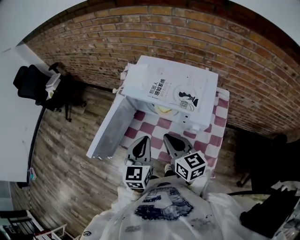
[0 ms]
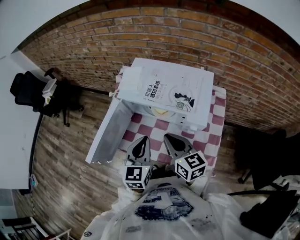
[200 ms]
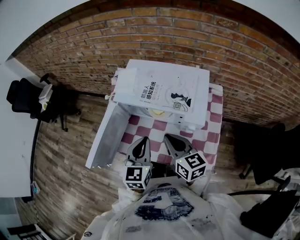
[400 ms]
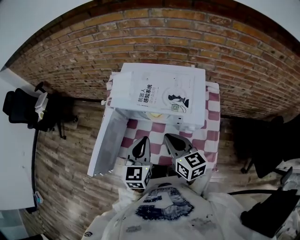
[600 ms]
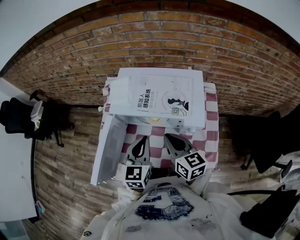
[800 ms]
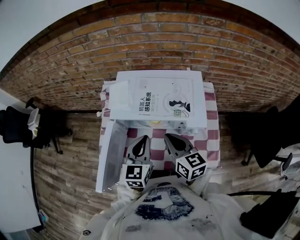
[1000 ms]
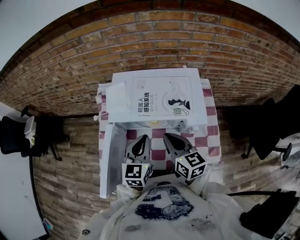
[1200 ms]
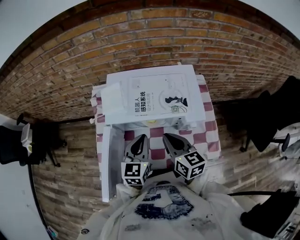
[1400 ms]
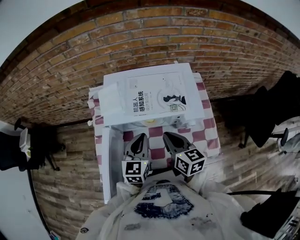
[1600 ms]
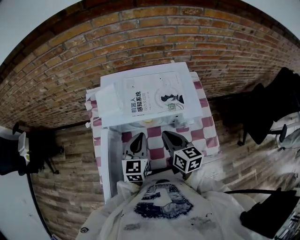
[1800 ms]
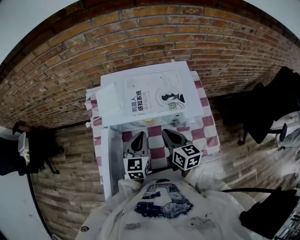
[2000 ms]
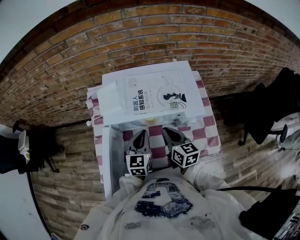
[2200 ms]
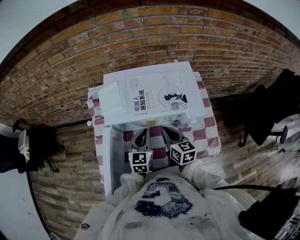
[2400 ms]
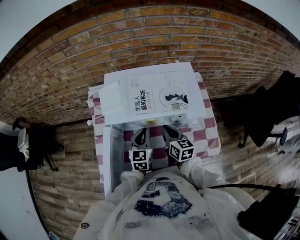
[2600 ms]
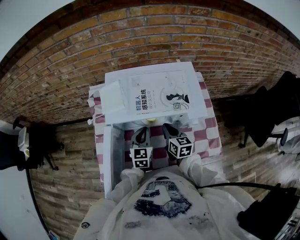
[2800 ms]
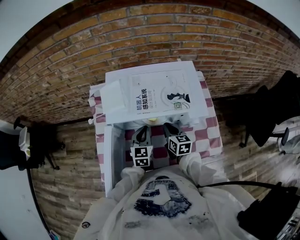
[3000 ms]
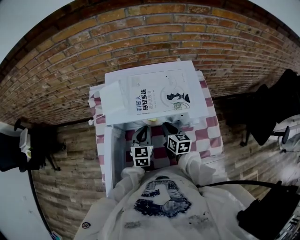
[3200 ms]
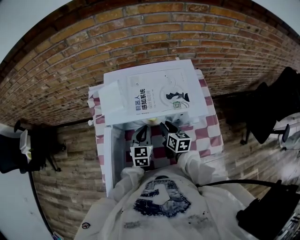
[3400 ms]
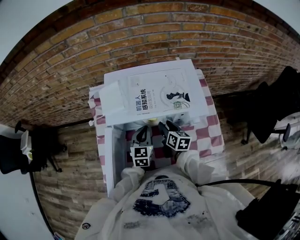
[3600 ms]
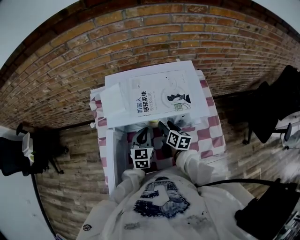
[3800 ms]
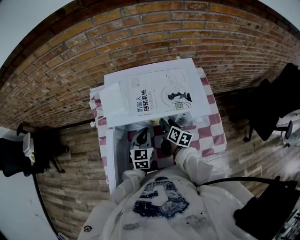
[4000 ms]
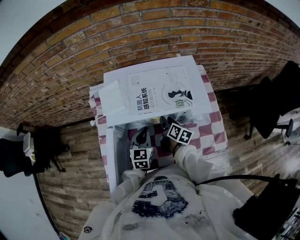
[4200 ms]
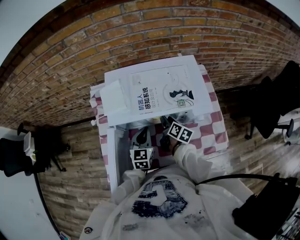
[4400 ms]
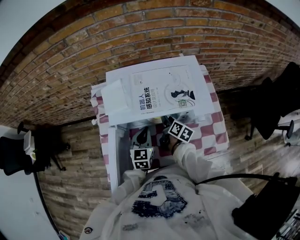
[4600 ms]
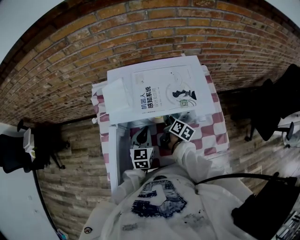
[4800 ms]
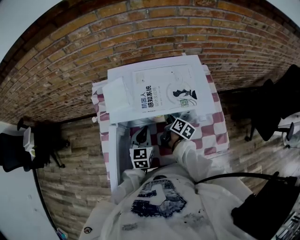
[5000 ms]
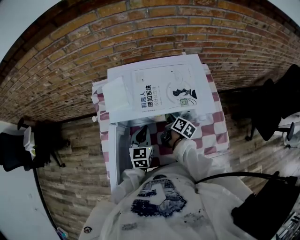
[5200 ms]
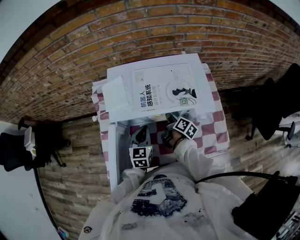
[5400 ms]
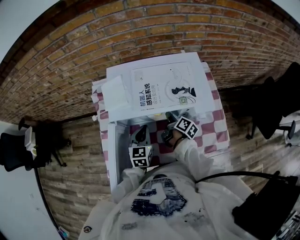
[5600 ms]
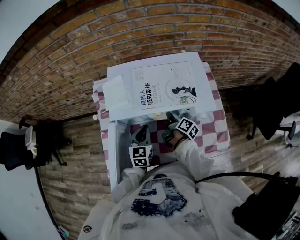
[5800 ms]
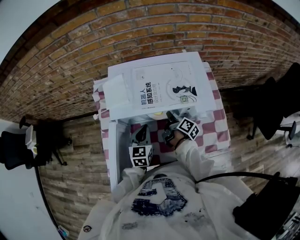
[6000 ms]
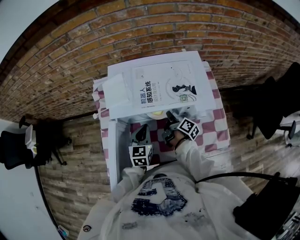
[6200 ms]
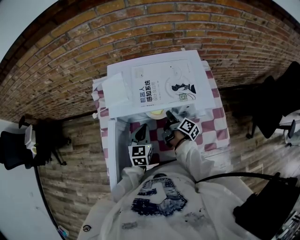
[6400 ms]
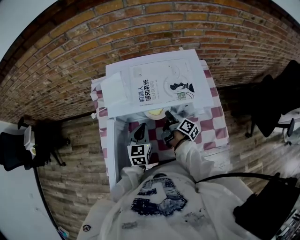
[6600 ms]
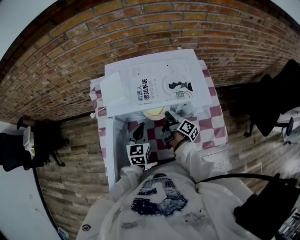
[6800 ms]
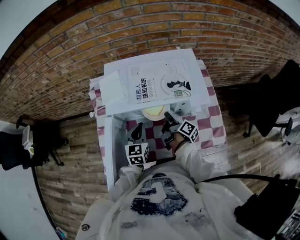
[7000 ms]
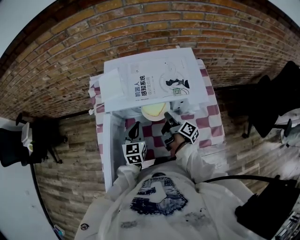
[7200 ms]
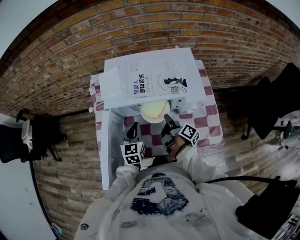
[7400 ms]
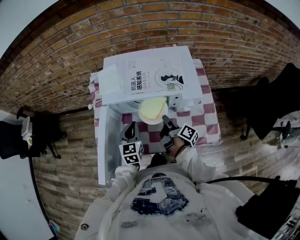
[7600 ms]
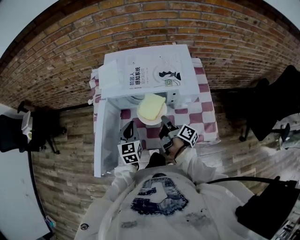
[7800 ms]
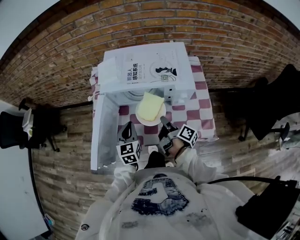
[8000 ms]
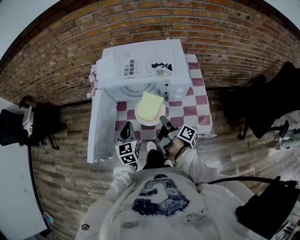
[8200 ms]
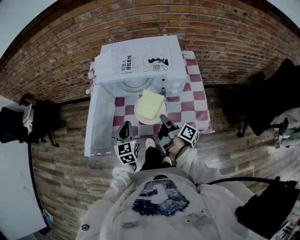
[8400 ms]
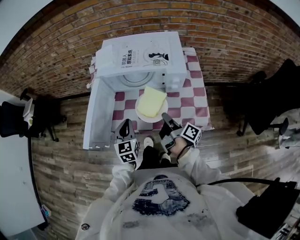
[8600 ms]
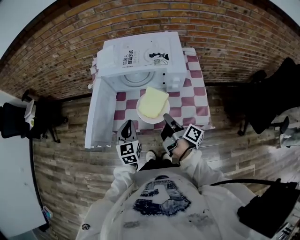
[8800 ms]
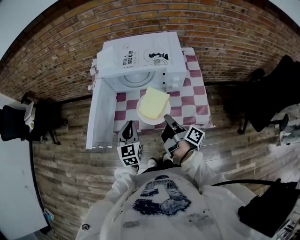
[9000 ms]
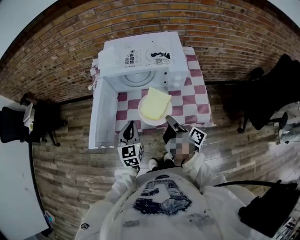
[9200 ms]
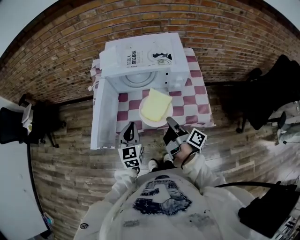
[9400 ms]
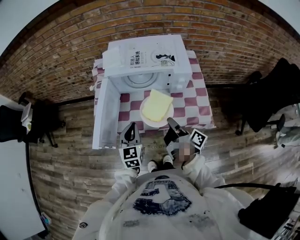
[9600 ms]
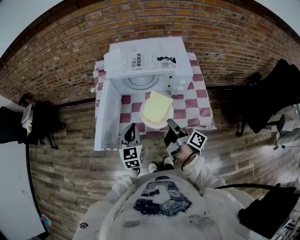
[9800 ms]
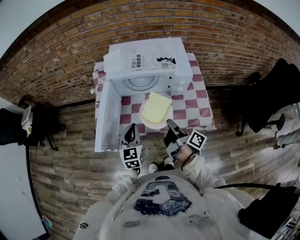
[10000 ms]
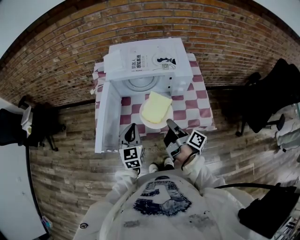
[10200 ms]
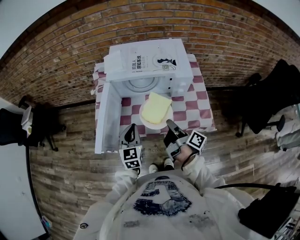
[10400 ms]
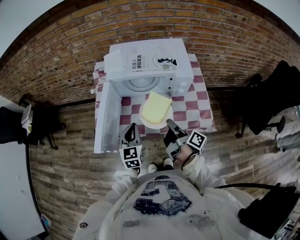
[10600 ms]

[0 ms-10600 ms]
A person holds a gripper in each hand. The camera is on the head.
0 ms to 1600 ms: The right gripper shifts by roughly 10 cm, and swivels about 30 degrees; the left gripper ends up roughly 10 cm from where it was, and changes its angle by some 30 degrees.
1600 ms to 3000 ms: The left gripper is displaced downward by roughly 10 cm, while the right gripper travels downward and forward by roughly 15 cm.
3000 ms to 4600 ms: The right gripper changes place by approximately 5 cm, changes its angle by some 40 degrees, and opens.
4600 ms to 6000 ms: The right gripper rotates approximately 20 degrees, and closes its fingers.
6000 ms to 7600 ms: The left gripper goes about 5 cm backward, while the right gripper is displaced backward and upward by some 10 cm.
7600 ms to 9000 ms: The left gripper travels backward by about 15 cm, while the right gripper travels backward and upward by about 20 cm.
9000 ms to 10600 ms: There are only small adjustments of the grippers.

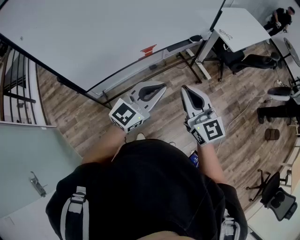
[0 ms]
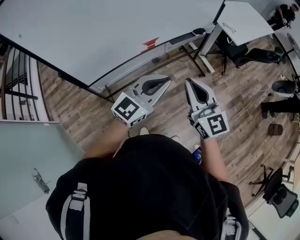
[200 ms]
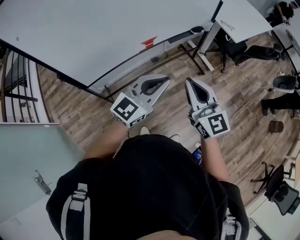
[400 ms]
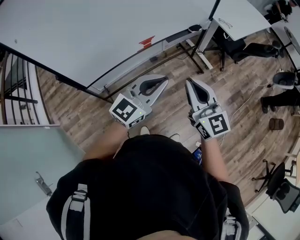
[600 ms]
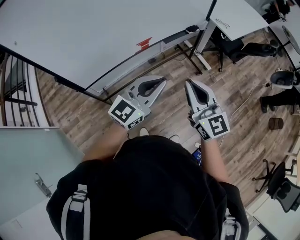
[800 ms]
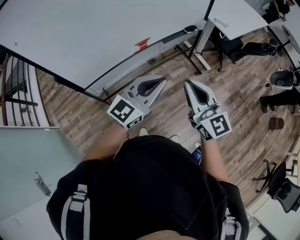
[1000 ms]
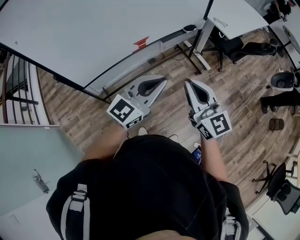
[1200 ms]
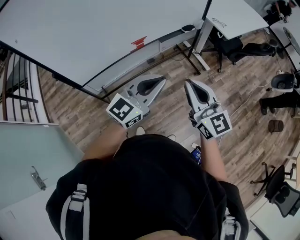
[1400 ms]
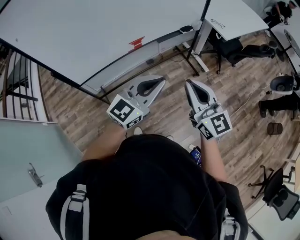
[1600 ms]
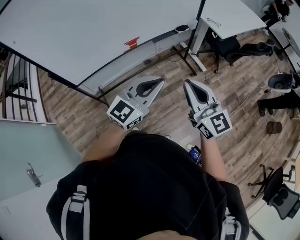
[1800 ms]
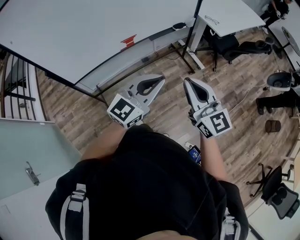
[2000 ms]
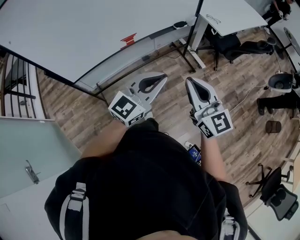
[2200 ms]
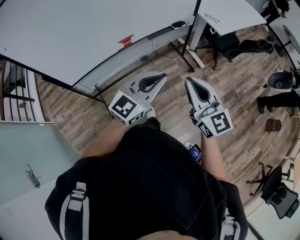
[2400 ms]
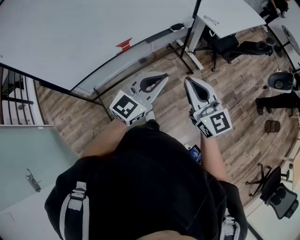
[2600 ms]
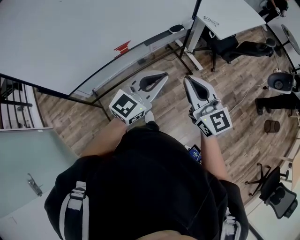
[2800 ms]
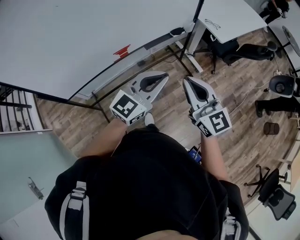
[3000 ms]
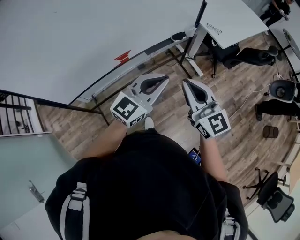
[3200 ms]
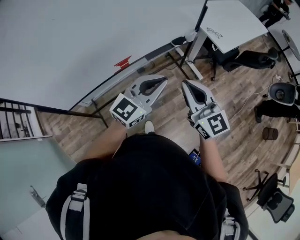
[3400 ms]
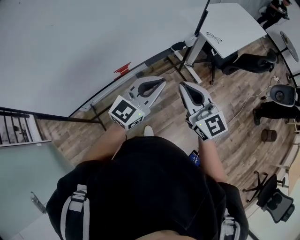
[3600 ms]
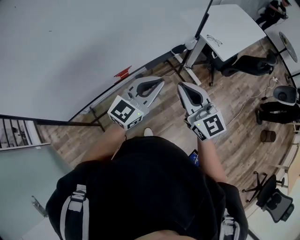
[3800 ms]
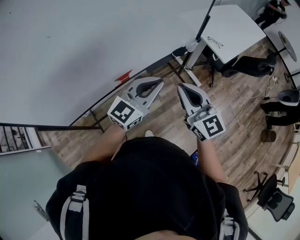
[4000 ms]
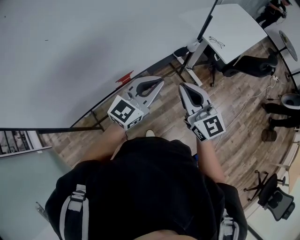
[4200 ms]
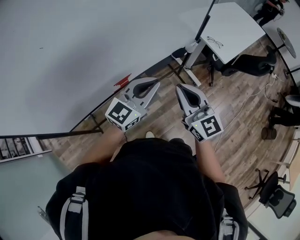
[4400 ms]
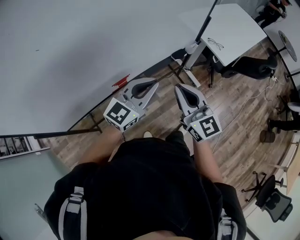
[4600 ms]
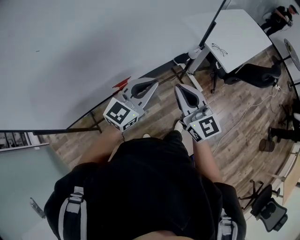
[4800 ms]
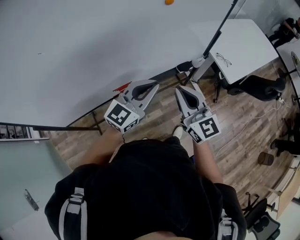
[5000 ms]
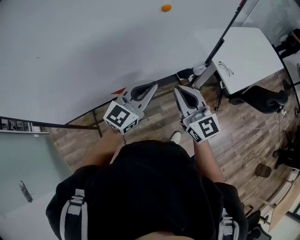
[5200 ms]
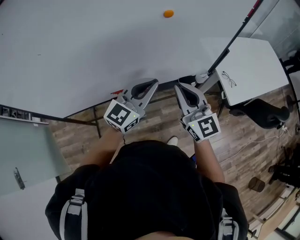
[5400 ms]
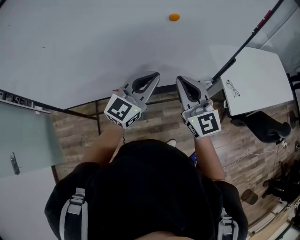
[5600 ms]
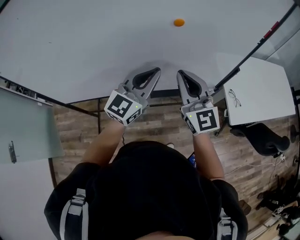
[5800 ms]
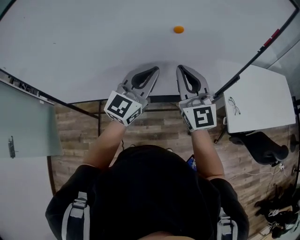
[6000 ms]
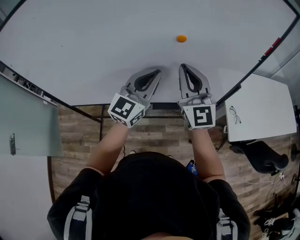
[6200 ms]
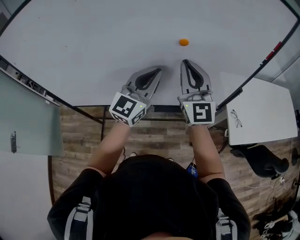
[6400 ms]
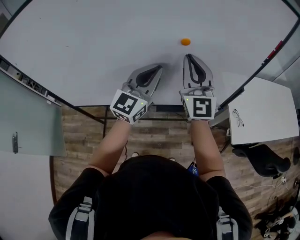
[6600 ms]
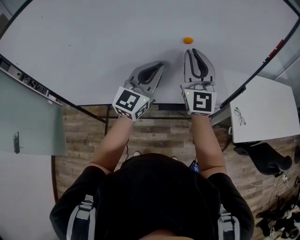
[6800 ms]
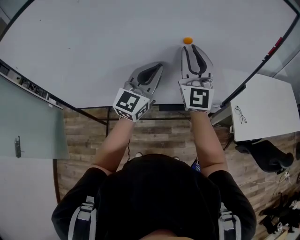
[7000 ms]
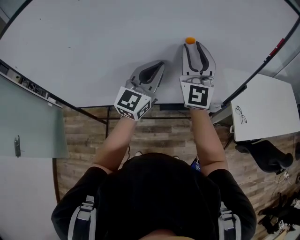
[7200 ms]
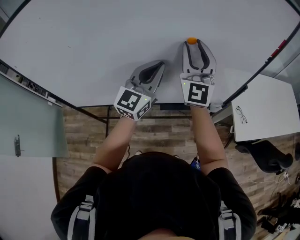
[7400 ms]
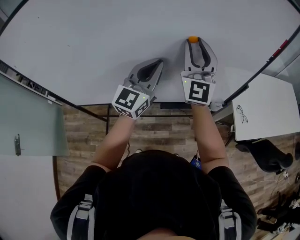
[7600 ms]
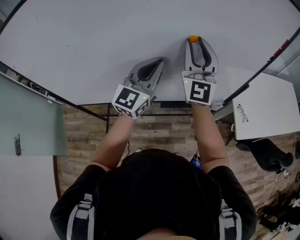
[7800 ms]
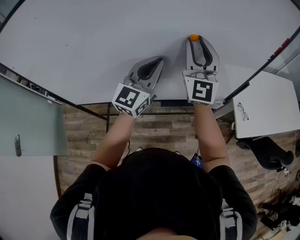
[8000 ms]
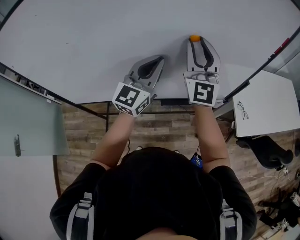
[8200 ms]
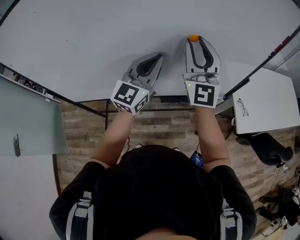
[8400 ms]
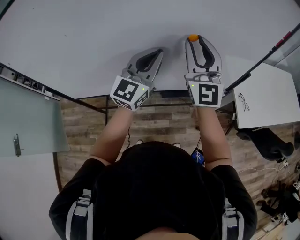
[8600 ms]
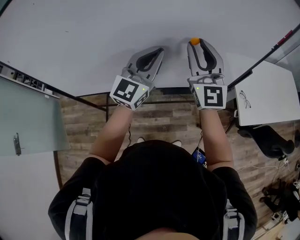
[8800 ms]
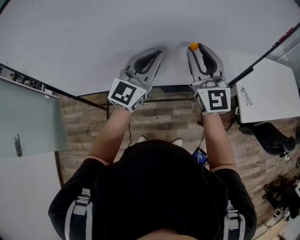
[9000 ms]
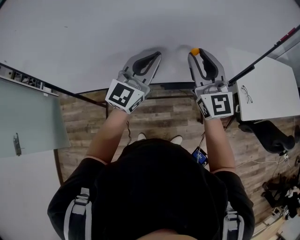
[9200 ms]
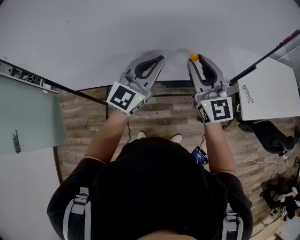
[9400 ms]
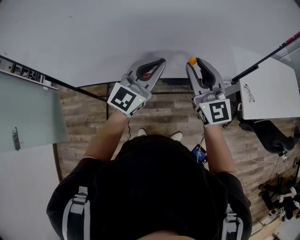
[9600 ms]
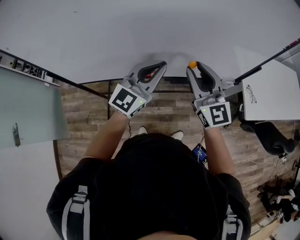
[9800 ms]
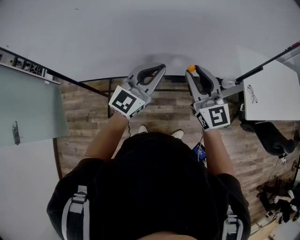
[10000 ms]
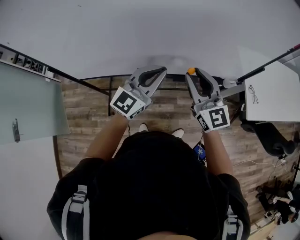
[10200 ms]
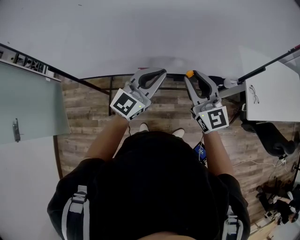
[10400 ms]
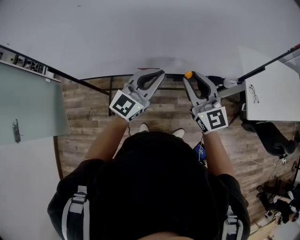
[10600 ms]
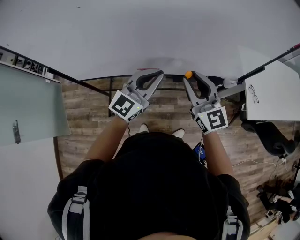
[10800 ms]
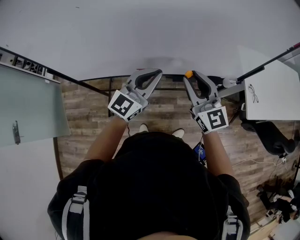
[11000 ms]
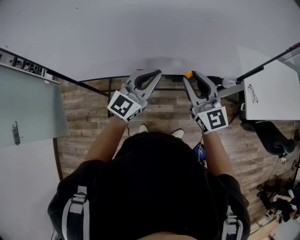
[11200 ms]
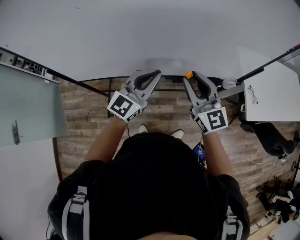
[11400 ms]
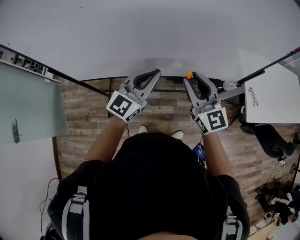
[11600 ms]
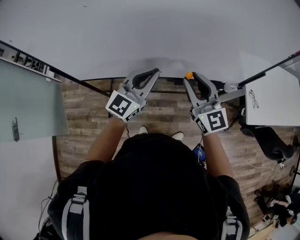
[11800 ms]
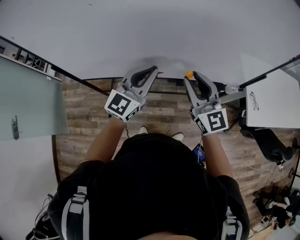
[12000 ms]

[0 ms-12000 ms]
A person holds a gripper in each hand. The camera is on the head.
0 ms to 1600 ms: The two grippers go roughly 10 cm to the right.
1600 ms to 3000 ms: The grippers both shift forward by roughly 15 cm.
3000 ms to 4400 ms: Both grippers travel together forward and to the left, about 20 cm.
4400 ms to 6000 ms: The left gripper changes place by roughly 20 cm, and changes its angle by roughly 40 degrees. The right gripper shifts by roughly 25 cm, and rotates roughly 30 degrees.
6000 ms to 7600 ms: The right gripper goes some 10 cm forward and upward, turns by about 20 degrees, and opens. Meanwhile the left gripper ends up approximately 5 cm from where it was.
7600 ms to 9000 ms: The right gripper goes about 10 cm backward and downward. The left gripper shifts by some 5 cm.
9000 ms to 10400 ms: The right gripper goes approximately 15 cm downward, backward and to the left, and swivels roughly 20 degrees. Meanwhile the left gripper travels downward and backward by some 10 cm.
10400 ms to 12000 ms: The left gripper travels to the left by approximately 5 cm.

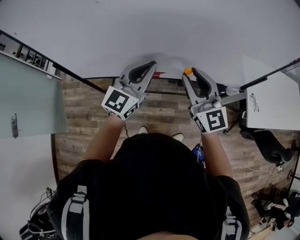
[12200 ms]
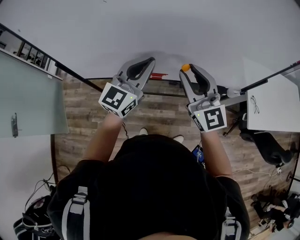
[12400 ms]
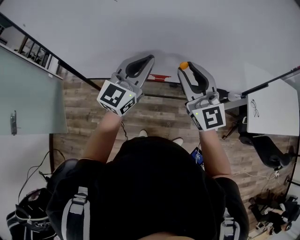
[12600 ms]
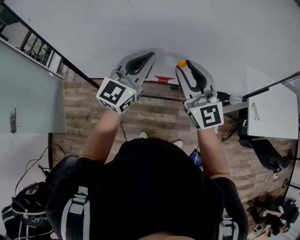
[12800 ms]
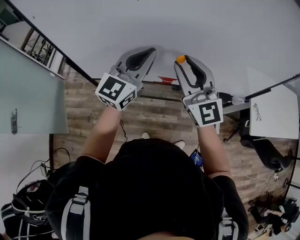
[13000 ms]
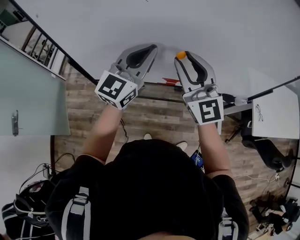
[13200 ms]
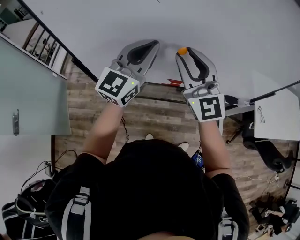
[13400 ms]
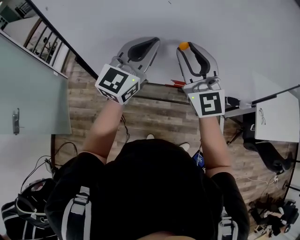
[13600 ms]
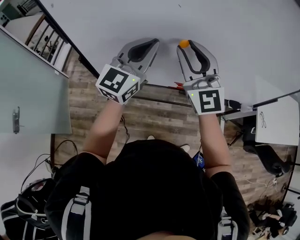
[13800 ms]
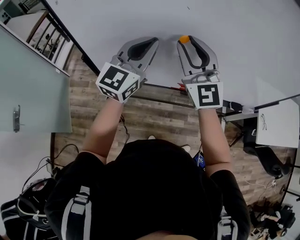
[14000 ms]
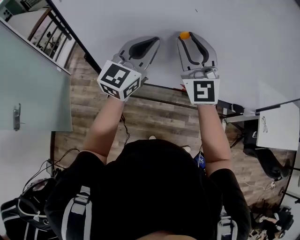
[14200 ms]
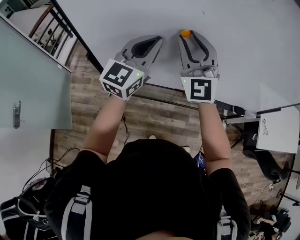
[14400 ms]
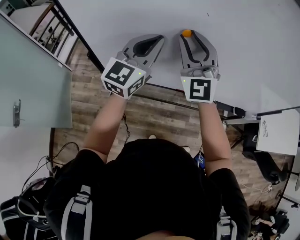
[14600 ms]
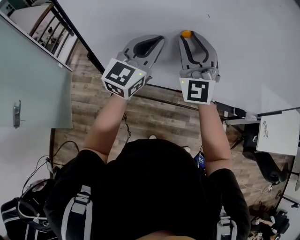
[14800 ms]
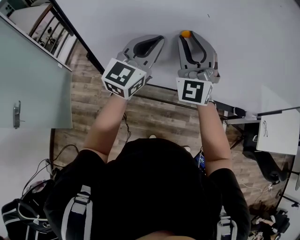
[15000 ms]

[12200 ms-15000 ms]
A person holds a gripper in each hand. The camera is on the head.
12200 ms to 13600 ms: Both grippers move to the left and upward, about 25 cm.
13600 ms to 15000 ms: The right gripper travels to the left and forward by about 10 cm, and turns by approximately 30 degrees. Meanwhile the left gripper shifts approximately 5 cm to the left.
